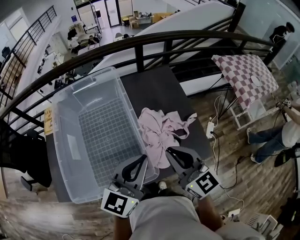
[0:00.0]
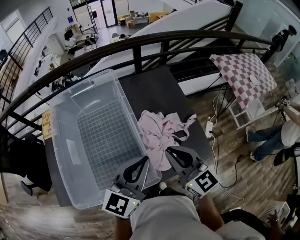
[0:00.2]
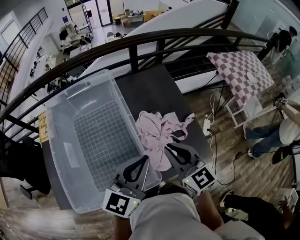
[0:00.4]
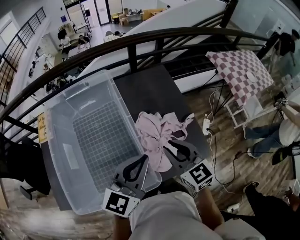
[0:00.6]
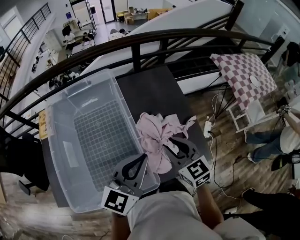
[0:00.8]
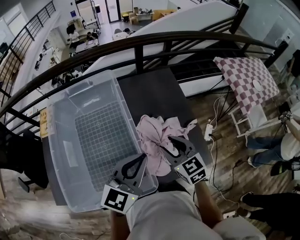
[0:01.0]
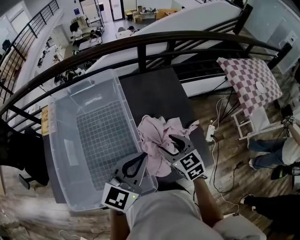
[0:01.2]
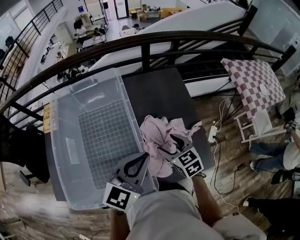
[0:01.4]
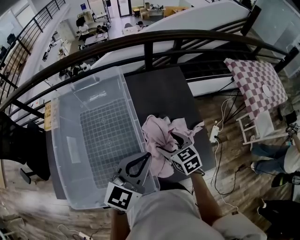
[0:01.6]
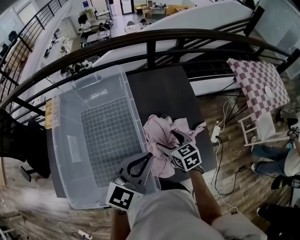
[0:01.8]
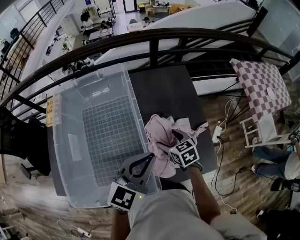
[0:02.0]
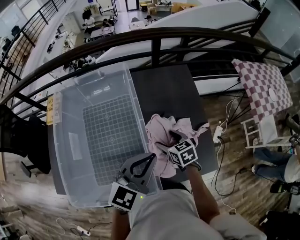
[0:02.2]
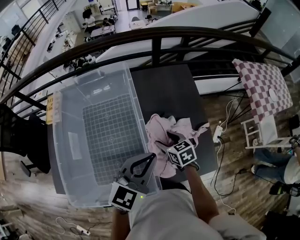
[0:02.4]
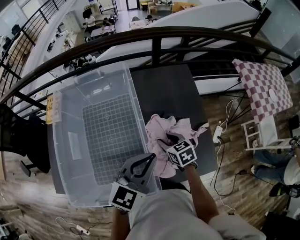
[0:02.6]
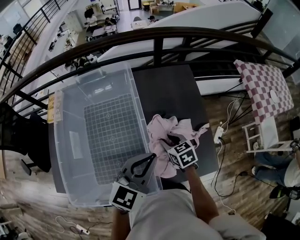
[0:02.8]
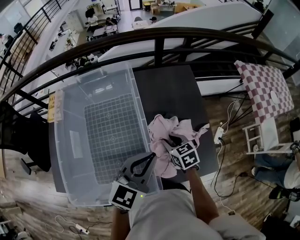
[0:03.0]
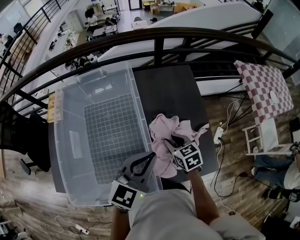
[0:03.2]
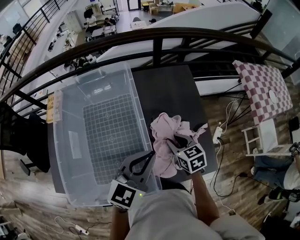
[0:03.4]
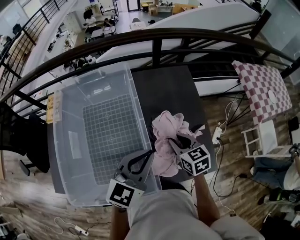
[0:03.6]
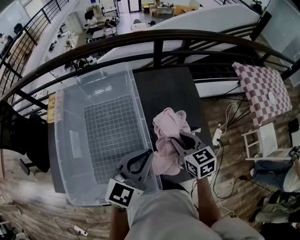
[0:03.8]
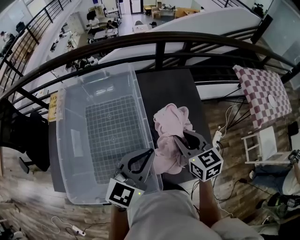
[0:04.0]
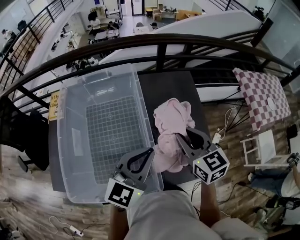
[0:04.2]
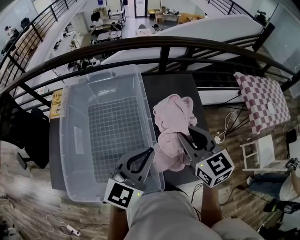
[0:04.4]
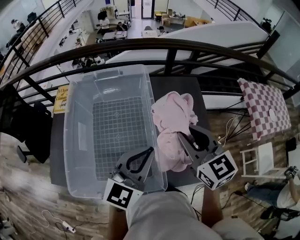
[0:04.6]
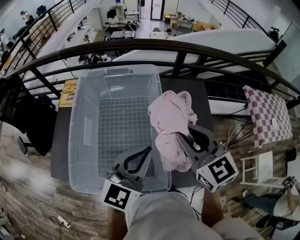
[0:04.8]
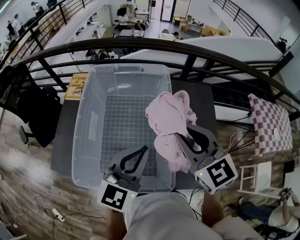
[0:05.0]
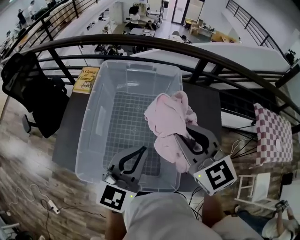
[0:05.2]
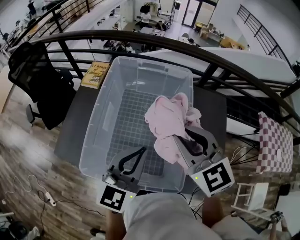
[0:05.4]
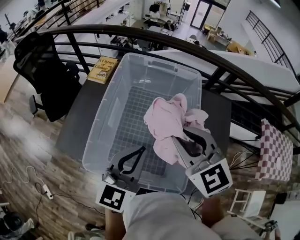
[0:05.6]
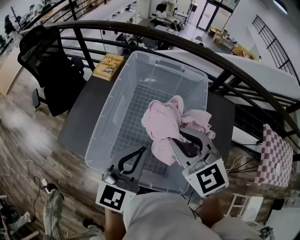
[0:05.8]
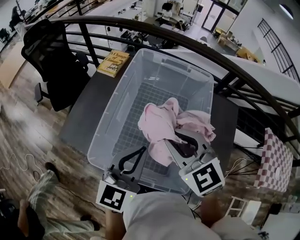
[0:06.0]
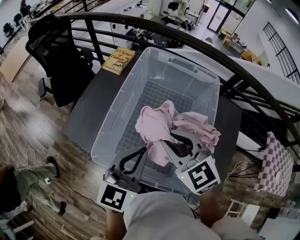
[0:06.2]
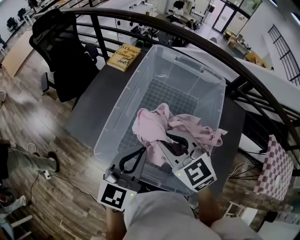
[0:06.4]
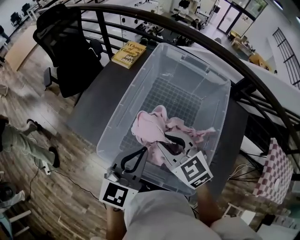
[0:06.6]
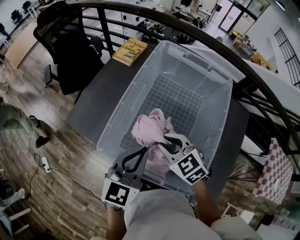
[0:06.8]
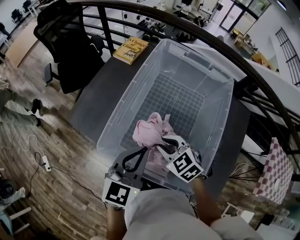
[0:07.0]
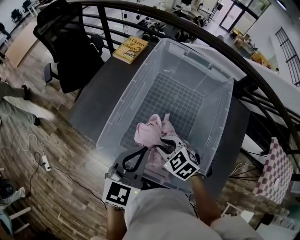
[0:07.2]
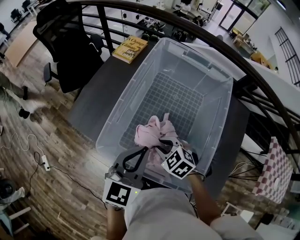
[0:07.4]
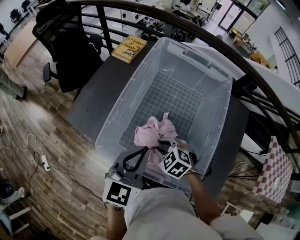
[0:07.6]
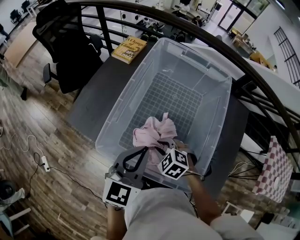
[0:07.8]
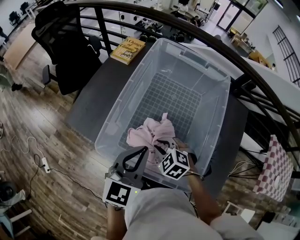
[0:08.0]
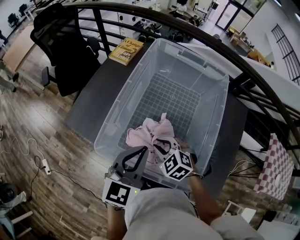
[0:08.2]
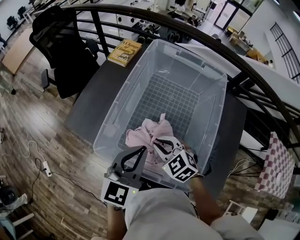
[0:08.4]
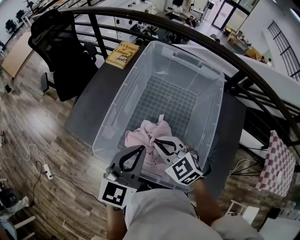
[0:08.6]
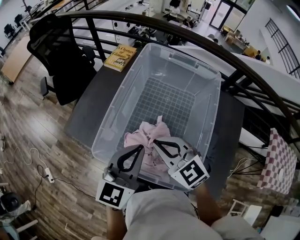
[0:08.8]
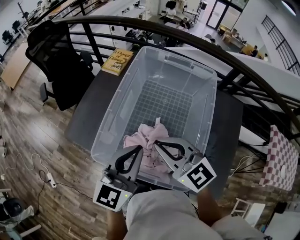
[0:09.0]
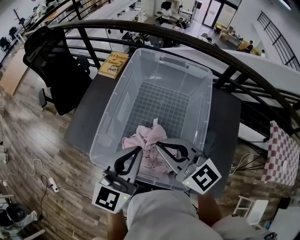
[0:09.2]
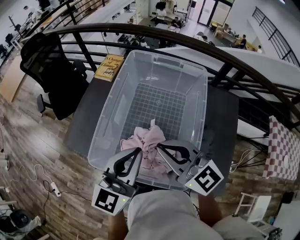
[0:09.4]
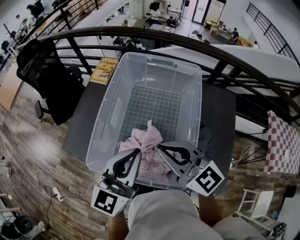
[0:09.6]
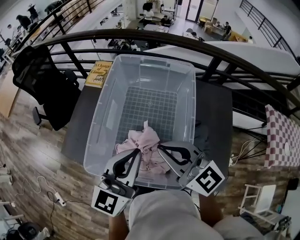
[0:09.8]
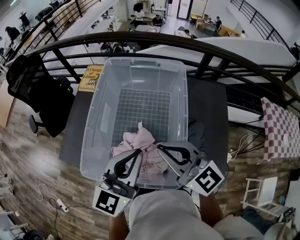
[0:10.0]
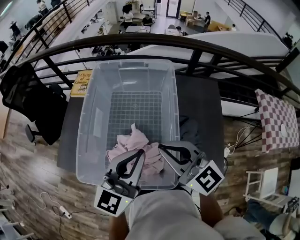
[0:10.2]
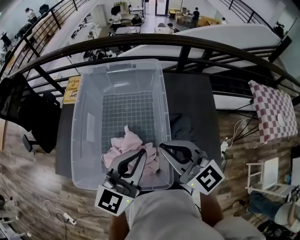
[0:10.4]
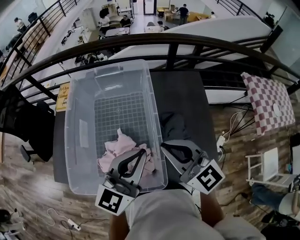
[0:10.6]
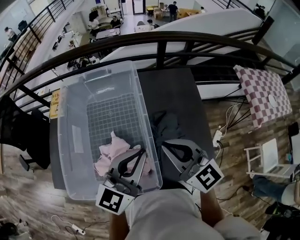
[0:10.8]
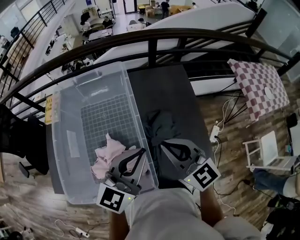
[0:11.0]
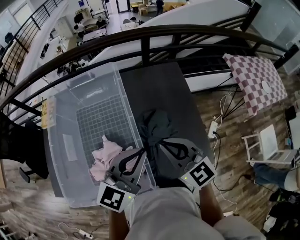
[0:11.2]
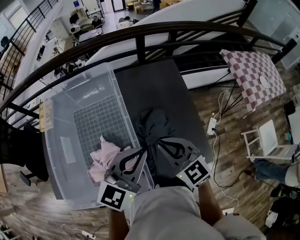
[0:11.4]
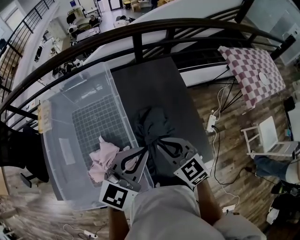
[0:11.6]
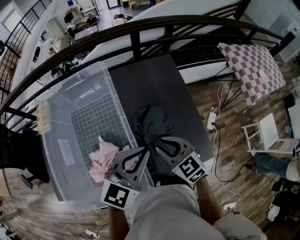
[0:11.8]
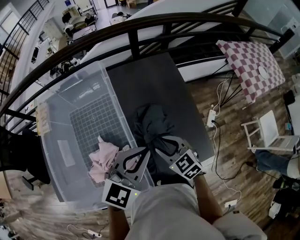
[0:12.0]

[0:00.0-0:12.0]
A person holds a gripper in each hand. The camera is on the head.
0:00.0 to 0:01.6: The left gripper heads forward, covering roughly 10 cm; the right gripper travels downward and forward by about 20 cm, tilts its fingers about 30 degrees downward, and opens up.
0:01.6 to 0:03.0: The right gripper shifts by some 5 cm, and closes.
0:03.0 to 0:04.4: The left gripper shifts by approximately 5 cm; the right gripper shifts approximately 25 cm upward, and turns by some 30 degrees.
0:04.4 to 0:06.0: The right gripper changes place by some 25 cm, and rotates some 40 degrees; the left gripper changes place by some 20 cm, and turns by roughly 30 degrees.
0:06.0 to 0:07.6: The right gripper is displaced downward by approximately 25 cm, and tilts its fingers roughly 30 degrees downward; the left gripper shifts about 5 cm downward.
0:07.6 to 0:09.0: The left gripper shifts about 5 cm upward. The right gripper goes about 20 cm upward, and angles its fingers upward, by roughly 50 degrees.
0:09.0 to 0:10.4: The grippers both shift to the right by about 15 cm. The left gripper rotates about 30 degrees; the right gripper swivels approximately 30 degrees.
0:10.4 to 0:12.0: The right gripper heads downward and to the right, covering some 25 cm, and tips its fingers downward by approximately 30 degrees, while the left gripper travels to the right and downward by about 15 cm, and turns by approximately 30 degrees.

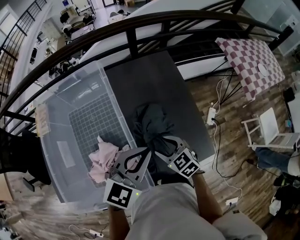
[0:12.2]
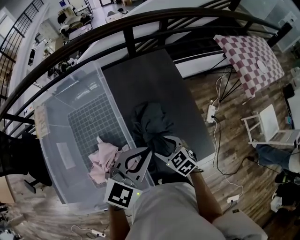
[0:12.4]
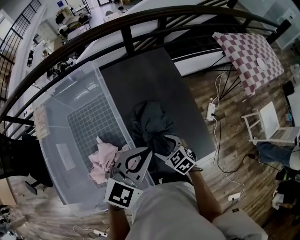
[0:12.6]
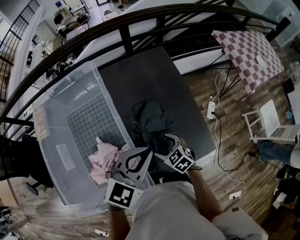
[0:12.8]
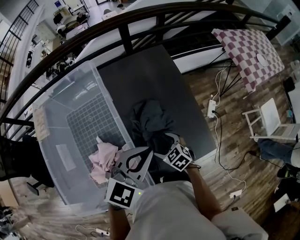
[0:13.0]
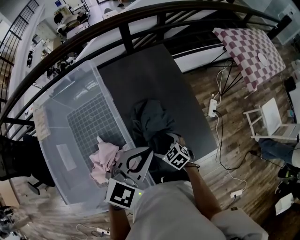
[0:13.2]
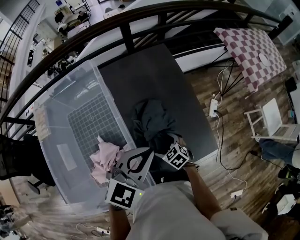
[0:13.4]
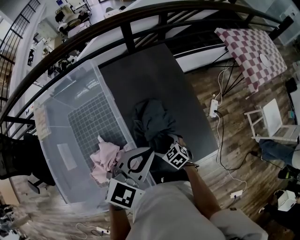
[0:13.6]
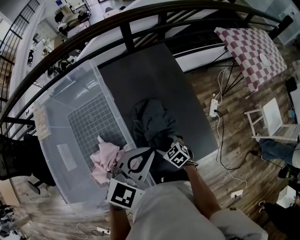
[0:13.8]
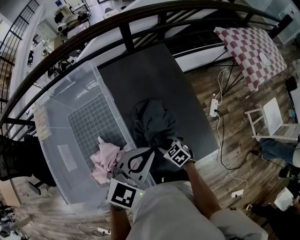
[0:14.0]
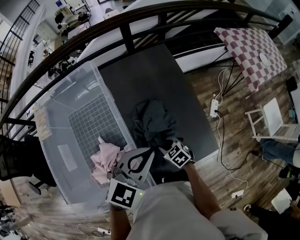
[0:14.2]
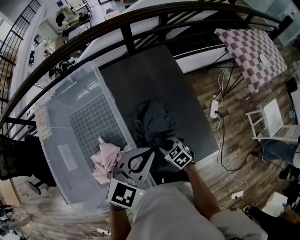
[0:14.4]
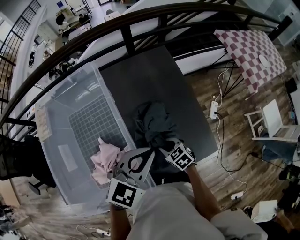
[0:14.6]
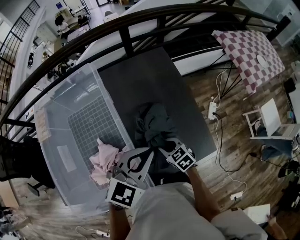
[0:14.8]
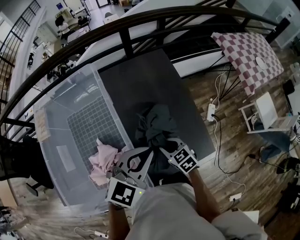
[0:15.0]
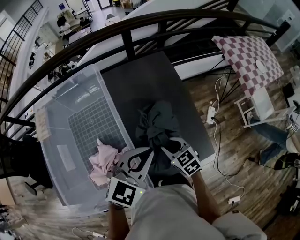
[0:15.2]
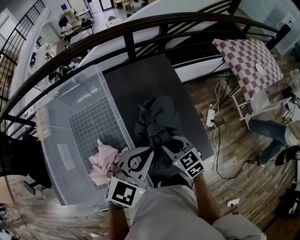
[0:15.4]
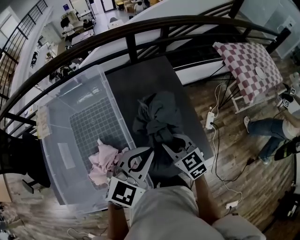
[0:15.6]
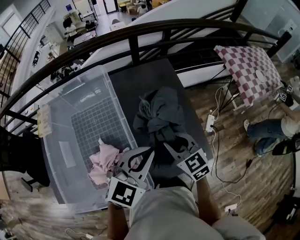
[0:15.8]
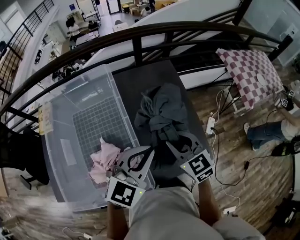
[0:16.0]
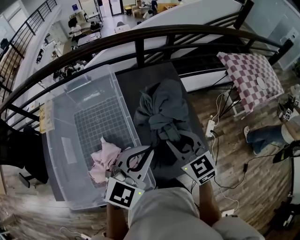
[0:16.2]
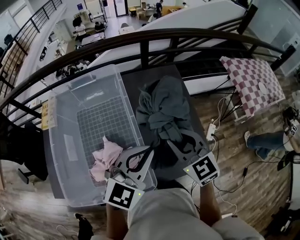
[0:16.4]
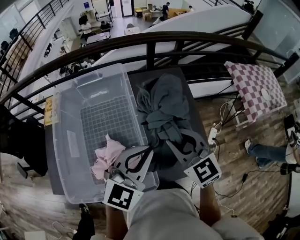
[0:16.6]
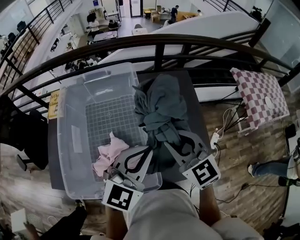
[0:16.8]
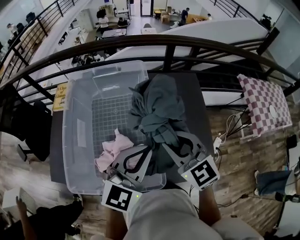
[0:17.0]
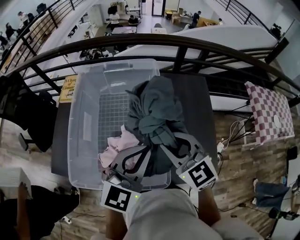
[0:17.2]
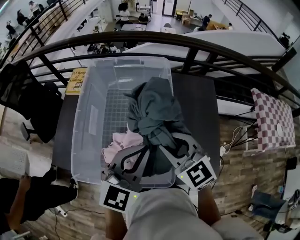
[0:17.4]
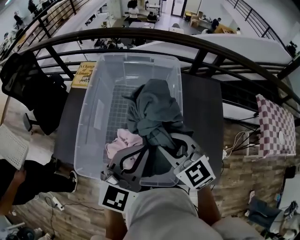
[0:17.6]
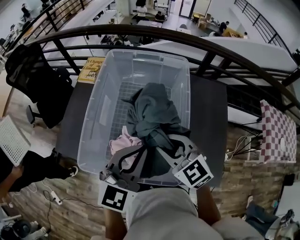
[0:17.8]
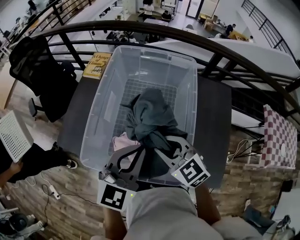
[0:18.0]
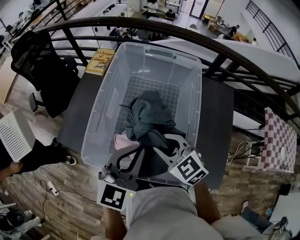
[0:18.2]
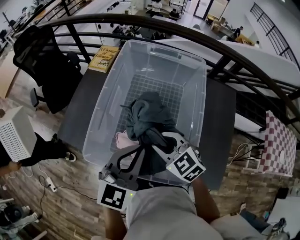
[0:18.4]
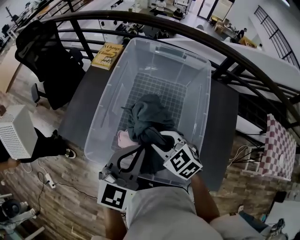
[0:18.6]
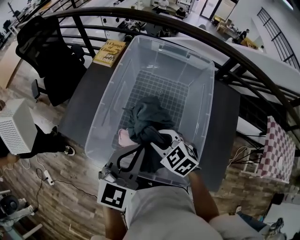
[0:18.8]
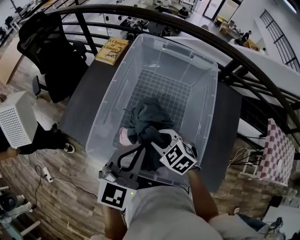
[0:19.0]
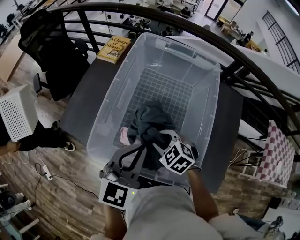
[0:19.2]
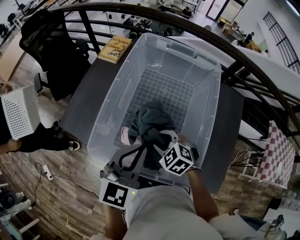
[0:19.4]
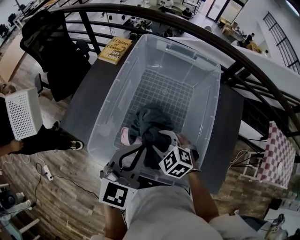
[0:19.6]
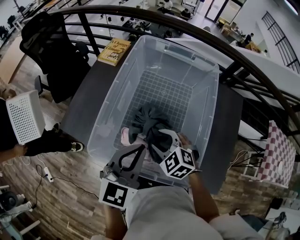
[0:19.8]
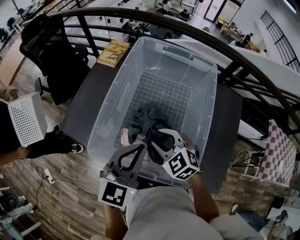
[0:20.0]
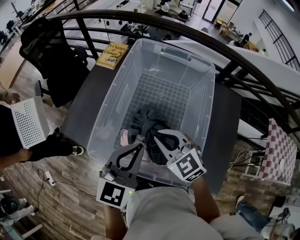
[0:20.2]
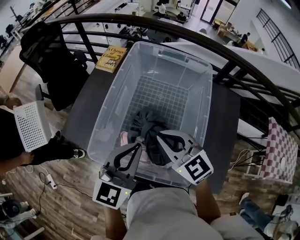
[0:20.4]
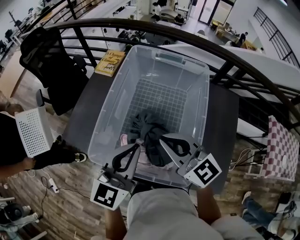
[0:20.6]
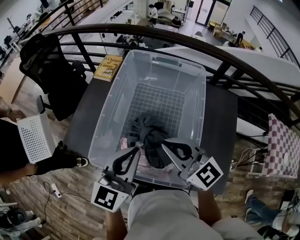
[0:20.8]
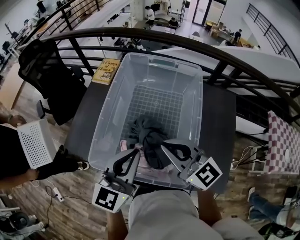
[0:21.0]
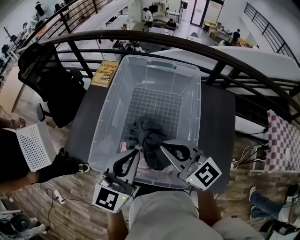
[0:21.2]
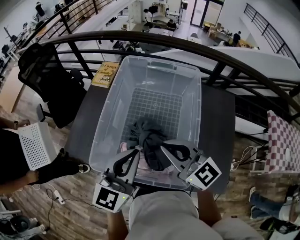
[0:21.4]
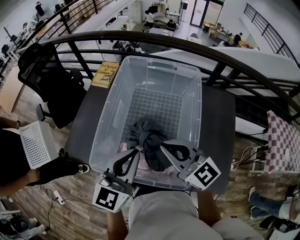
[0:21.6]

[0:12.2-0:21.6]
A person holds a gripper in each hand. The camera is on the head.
0:12.2 to 0:13.8: The right gripper moves downward, roughly 15 cm.
0:13.8 to 0:15.4: The right gripper heads upward, covering roughly 15 cm, and closes.
0:15.4 to 0:17.0: The left gripper shifts some 15 cm to the left and upward, and rotates roughly 20 degrees, while the right gripper goes about 25 cm upward and to the left, and turns by approximately 30 degrees.
0:17.0 to 0:18.4: The right gripper changes place by approximately 20 cm, and turns by approximately 30 degrees. The left gripper changes place by approximately 15 cm, and changes its angle by approximately 30 degrees.
0:18.4 to 0:20.0: The right gripper travels downward and back again, some 10 cm each way.
0:20.0 to 0:21.6: The right gripper is displaced upward by approximately 15 cm, tilts its fingers approximately 40 degrees upward, and closes its fingers.

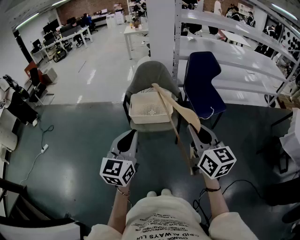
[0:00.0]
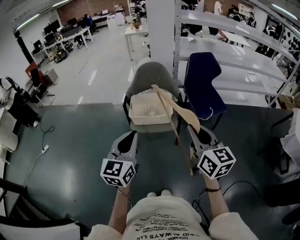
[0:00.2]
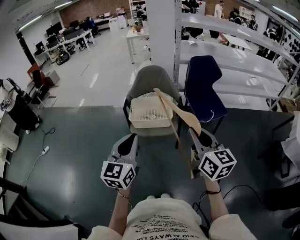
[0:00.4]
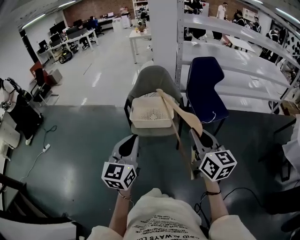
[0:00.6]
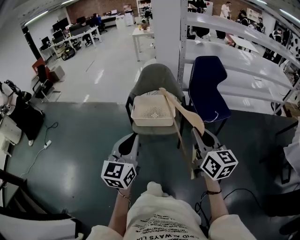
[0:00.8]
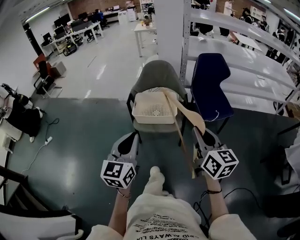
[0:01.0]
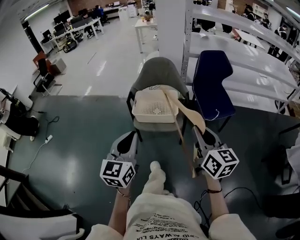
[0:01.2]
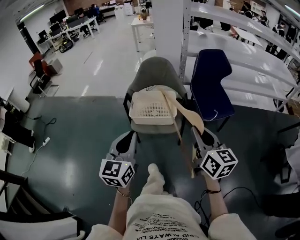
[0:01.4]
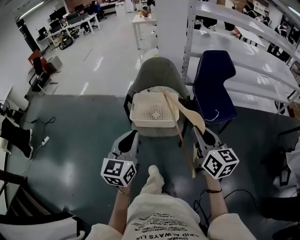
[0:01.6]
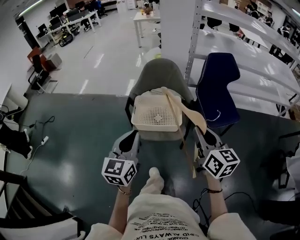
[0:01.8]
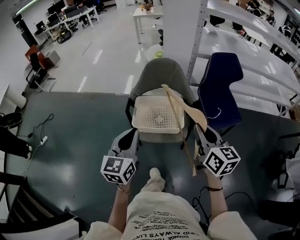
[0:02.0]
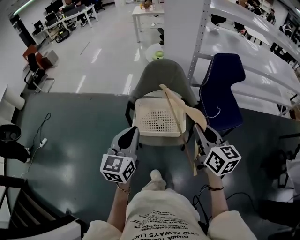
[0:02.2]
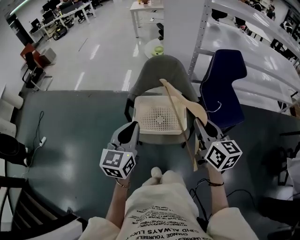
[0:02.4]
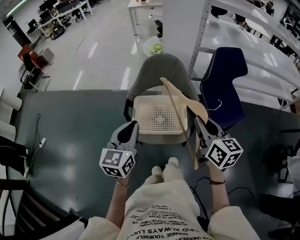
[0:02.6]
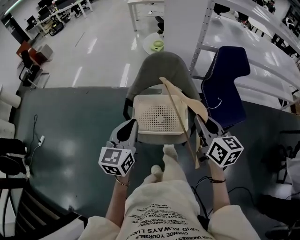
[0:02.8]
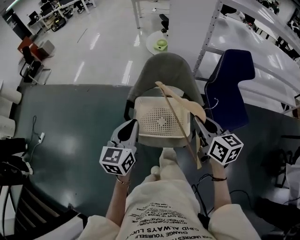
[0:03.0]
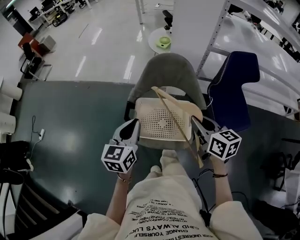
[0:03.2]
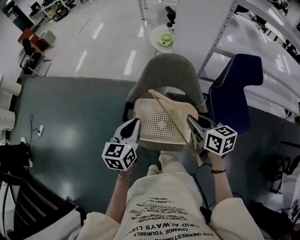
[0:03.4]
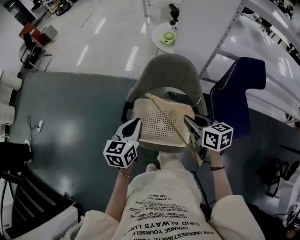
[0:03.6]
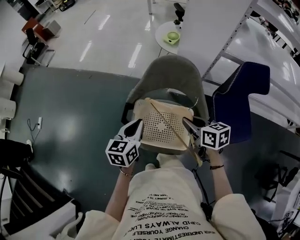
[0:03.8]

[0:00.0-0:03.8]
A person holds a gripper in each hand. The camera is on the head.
0:00.0 to 0:01.2: The right gripper shifts roughly 5 cm forward.
0:01.2 to 0:02.6: The two grippers go roughly 25 cm forward.
0:02.6 to 0:03.8: The grippers both shift forward and downward by roughly 20 cm. The left gripper swivels some 20 degrees. Meanwhile the right gripper turns by roughly 40 degrees.
